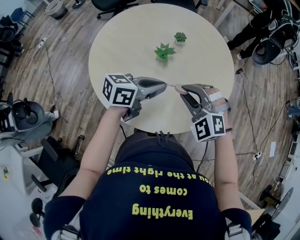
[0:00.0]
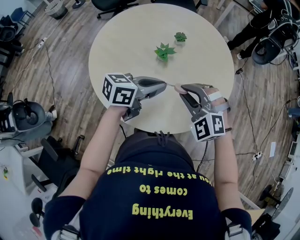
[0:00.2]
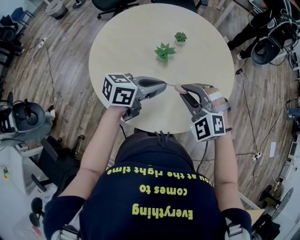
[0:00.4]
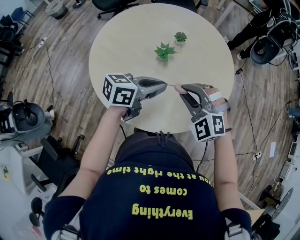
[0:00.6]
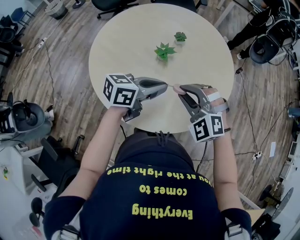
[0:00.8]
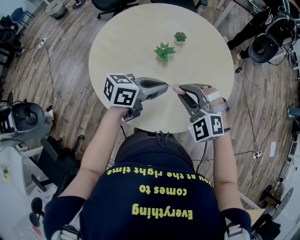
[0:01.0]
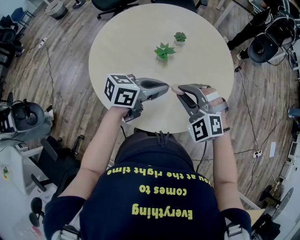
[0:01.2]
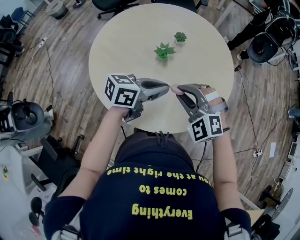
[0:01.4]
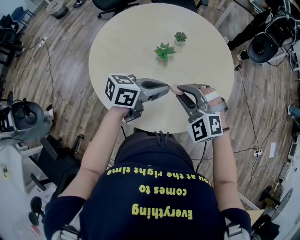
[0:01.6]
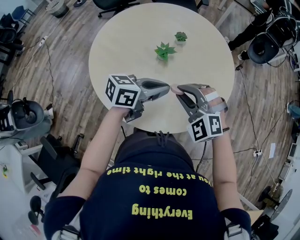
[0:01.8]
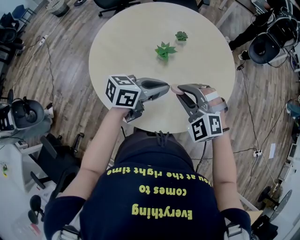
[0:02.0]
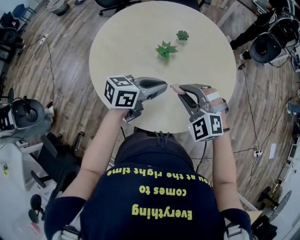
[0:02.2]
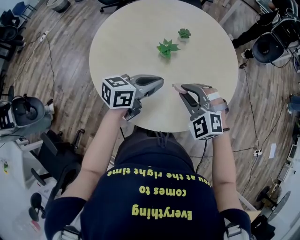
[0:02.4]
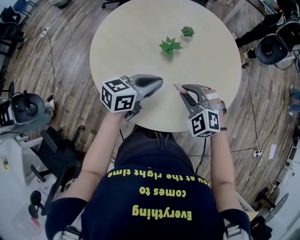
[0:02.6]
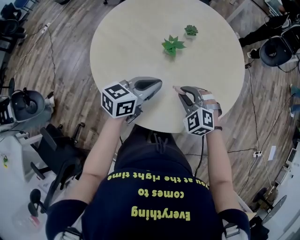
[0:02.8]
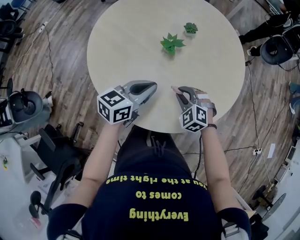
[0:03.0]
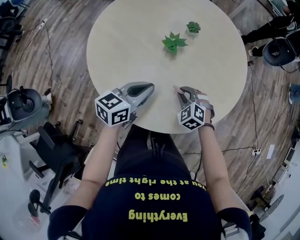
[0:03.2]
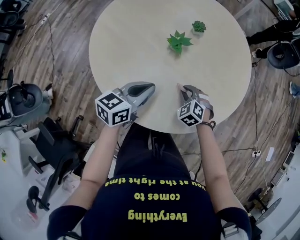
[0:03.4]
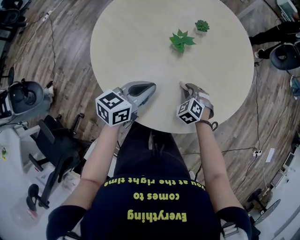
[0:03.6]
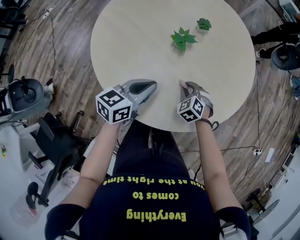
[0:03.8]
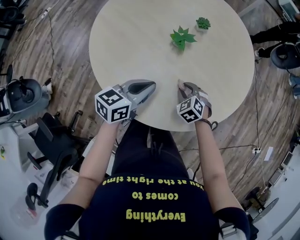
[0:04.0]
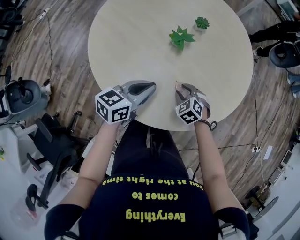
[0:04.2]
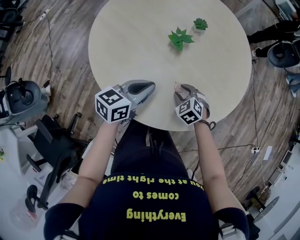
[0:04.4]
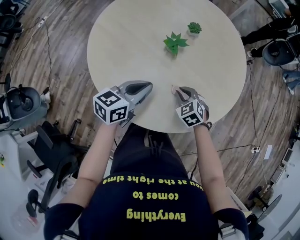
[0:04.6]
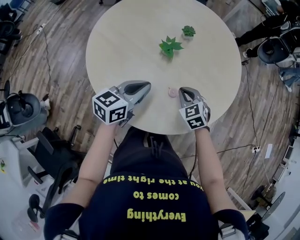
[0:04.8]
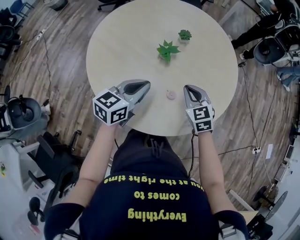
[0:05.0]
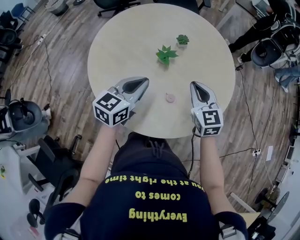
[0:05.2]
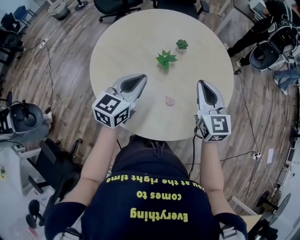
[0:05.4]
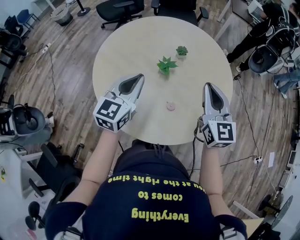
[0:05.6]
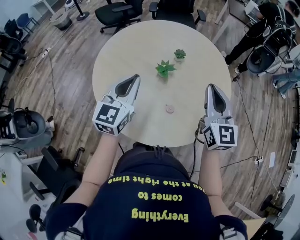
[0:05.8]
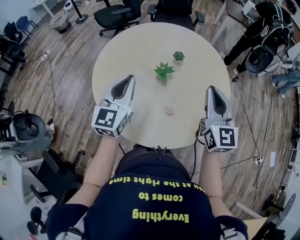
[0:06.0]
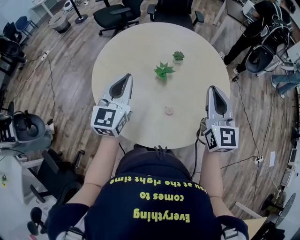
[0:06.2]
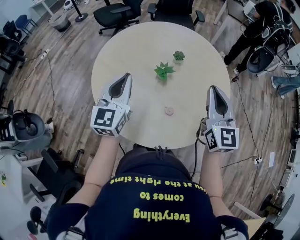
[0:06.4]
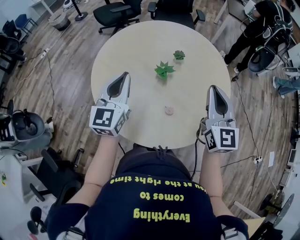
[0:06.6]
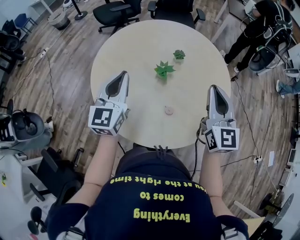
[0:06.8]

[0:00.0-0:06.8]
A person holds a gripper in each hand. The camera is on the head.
0:00.0 to 0:01.4: There are only small adjustments of the grippers.
0:01.4 to 0:02.8: The left gripper shifts some 5 cm downward; the right gripper shifts roughly 15 cm downward.
0:02.8 to 0:04.0: The right gripper shifts approximately 15 cm downward, and changes its angle by about 20 degrees. Meanwhile the left gripper goes approximately 5 cm downward.
0:04.0 to 0:05.4: The left gripper moves upward, some 10 cm, and changes its angle by some 30 degrees. Meanwhile the right gripper shifts some 30 cm upward, angles its fingers upward, by approximately 50 degrees, and closes.
0:05.4 to 0:06.8: The right gripper heads upward, covering some 10 cm; the left gripper moves to the left and upward, some 10 cm, and swivels some 20 degrees.

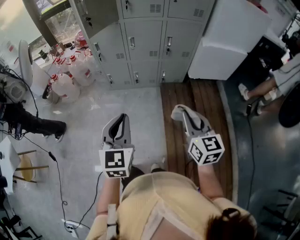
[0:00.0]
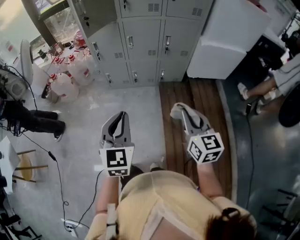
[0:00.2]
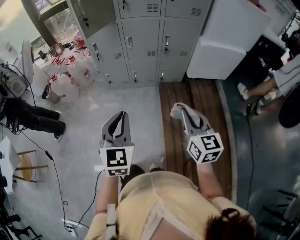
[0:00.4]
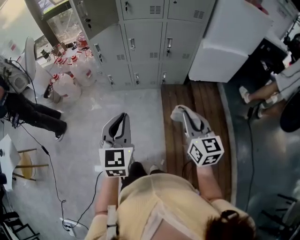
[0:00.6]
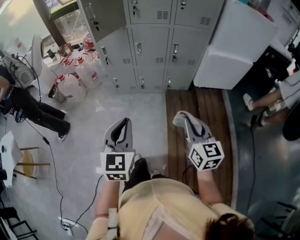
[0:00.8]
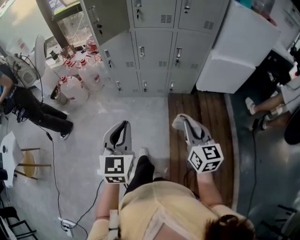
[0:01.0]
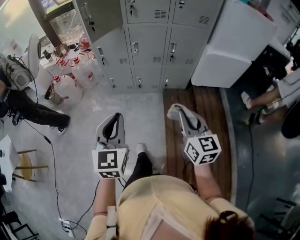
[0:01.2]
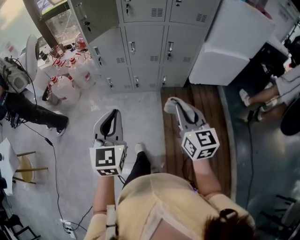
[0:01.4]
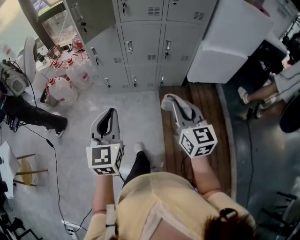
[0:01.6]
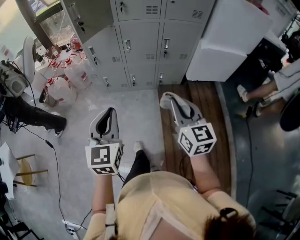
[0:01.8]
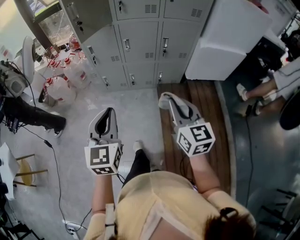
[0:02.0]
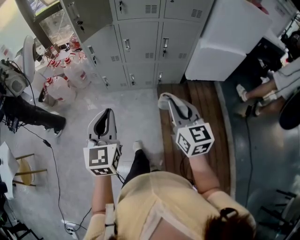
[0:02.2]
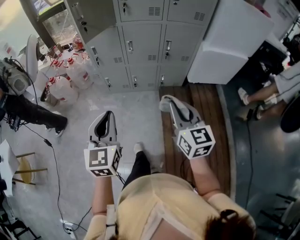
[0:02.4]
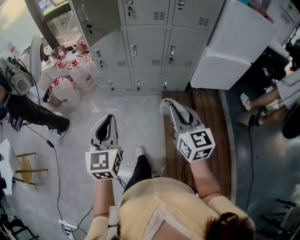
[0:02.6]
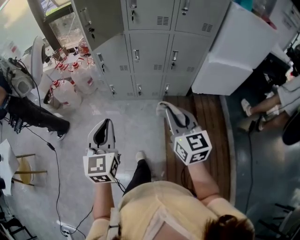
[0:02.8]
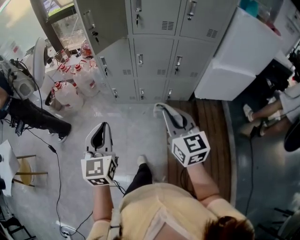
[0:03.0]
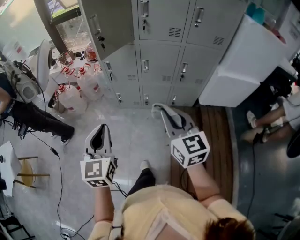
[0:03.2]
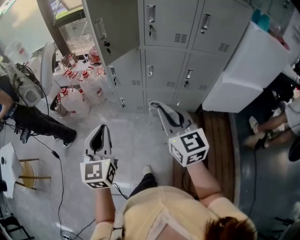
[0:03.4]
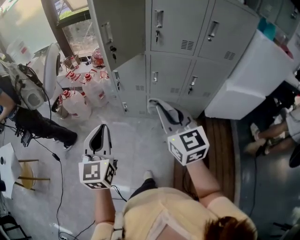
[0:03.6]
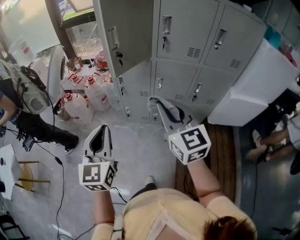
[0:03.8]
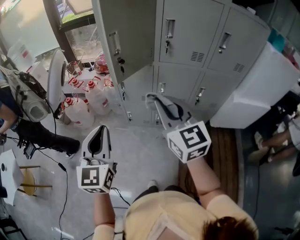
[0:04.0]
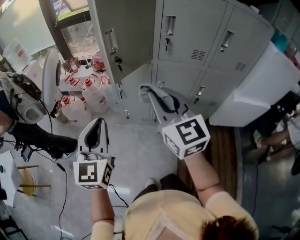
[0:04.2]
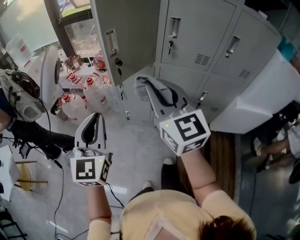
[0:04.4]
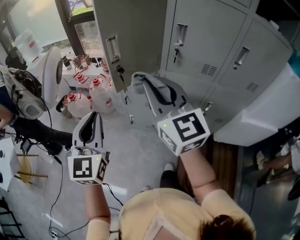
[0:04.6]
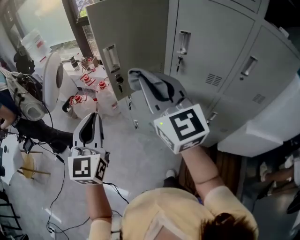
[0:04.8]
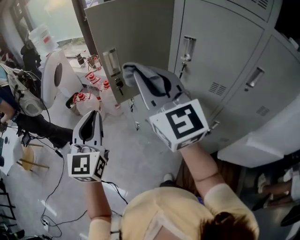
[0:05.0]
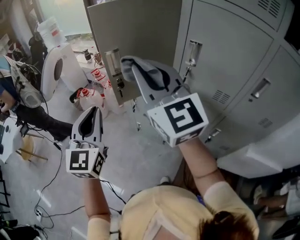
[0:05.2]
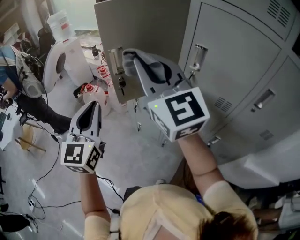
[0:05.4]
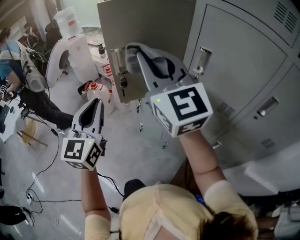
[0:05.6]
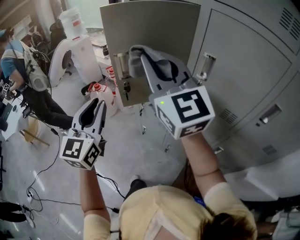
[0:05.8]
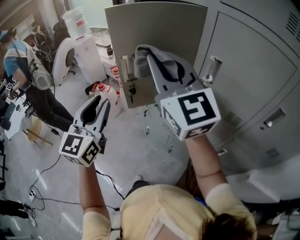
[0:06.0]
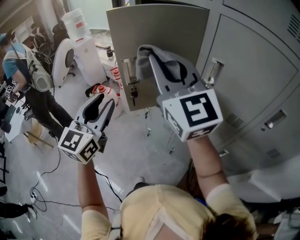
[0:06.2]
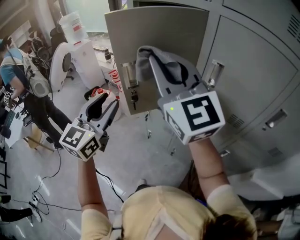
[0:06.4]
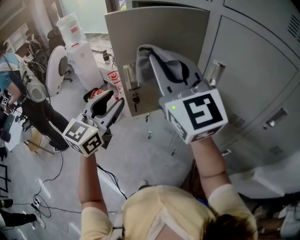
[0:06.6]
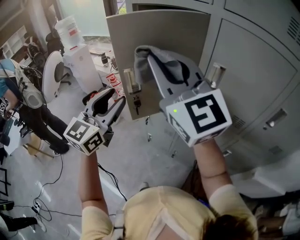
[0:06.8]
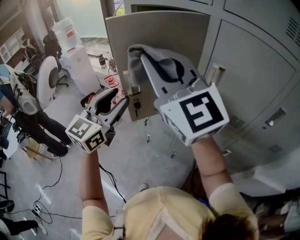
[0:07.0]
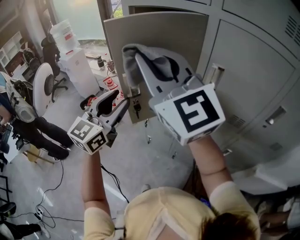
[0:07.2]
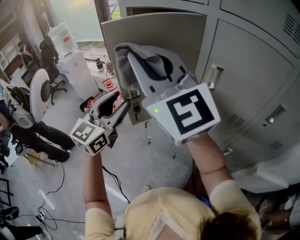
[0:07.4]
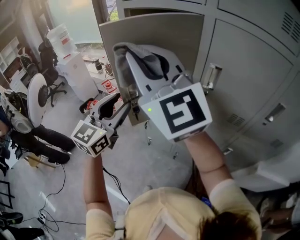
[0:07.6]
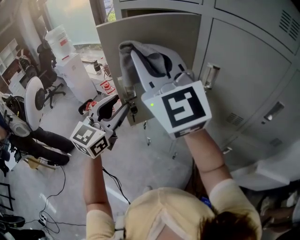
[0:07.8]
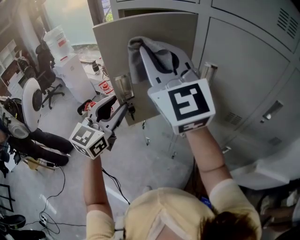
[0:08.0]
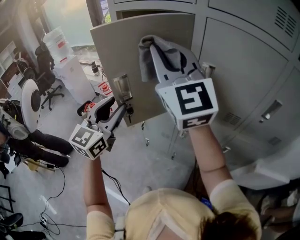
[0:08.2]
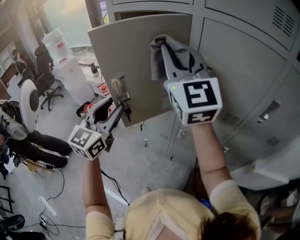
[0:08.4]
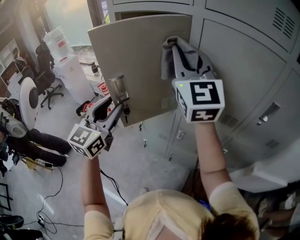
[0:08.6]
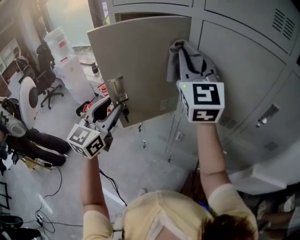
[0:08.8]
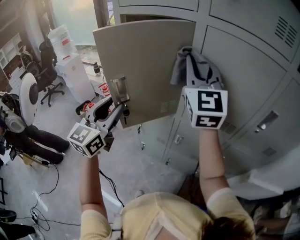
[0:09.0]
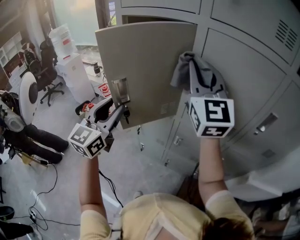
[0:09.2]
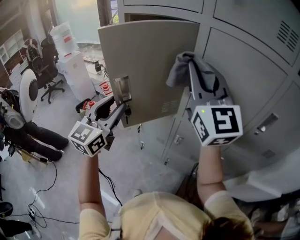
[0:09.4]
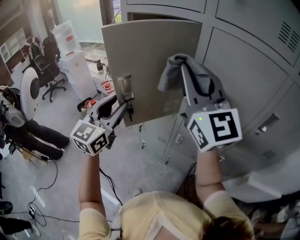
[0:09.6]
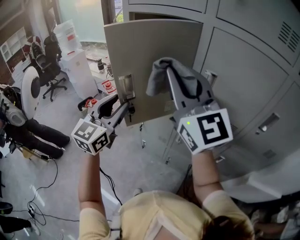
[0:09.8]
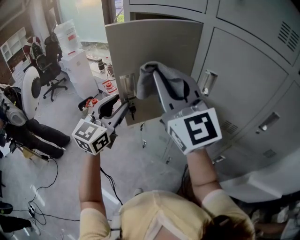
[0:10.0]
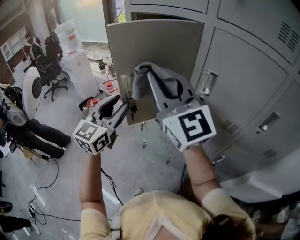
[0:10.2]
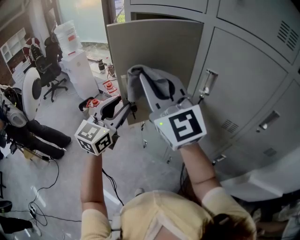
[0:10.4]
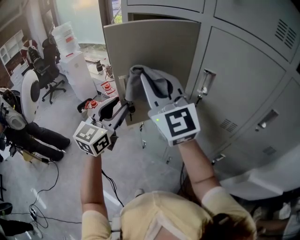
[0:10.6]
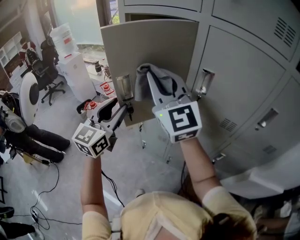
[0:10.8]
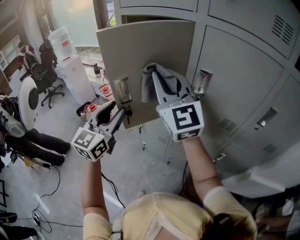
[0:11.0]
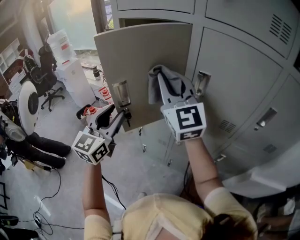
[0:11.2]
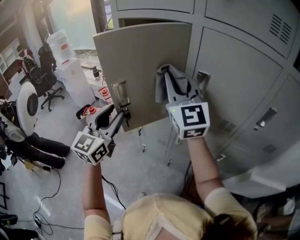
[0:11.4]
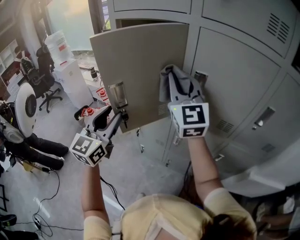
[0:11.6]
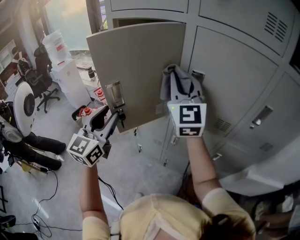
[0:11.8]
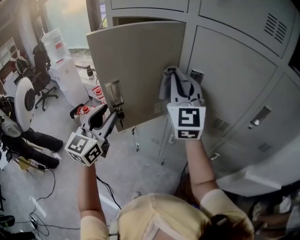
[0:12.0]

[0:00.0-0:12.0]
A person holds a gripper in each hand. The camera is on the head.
0:00.0 to 0:01.6: Both grippers travel together forward, about 5 cm.
0:01.6 to 0:03.0: The right gripper heads to the left and forward, covering approximately 10 cm. The left gripper goes approximately 5 cm to the left.
0:03.0 to 0:04.4: The right gripper travels forward, upward and to the left by some 35 cm, and rotates approximately 20 degrees. The left gripper travels forward and upward by some 25 cm.
0:04.4 to 0:06.0: The right gripper is displaced forward and upward by some 20 cm, and swivels about 30 degrees. Meanwhile the left gripper is displaced forward, to the right and upward by roughly 15 cm.
0:06.0 to 0:07.6: The left gripper travels forward by approximately 10 cm, and rotates about 20 degrees. Meanwhile the right gripper moves to the left, approximately 5 cm.
0:07.6 to 0:09.0: The right gripper is displaced to the right and forward by about 20 cm, and turns by approximately 30 degrees.
0:09.0 to 0:10.4: The right gripper is displaced to the left and backward by about 20 cm, and turns by approximately 30 degrees.
0:10.4 to 0:12.0: The right gripper moves to the right and forward, about 15 cm, and swivels some 30 degrees.

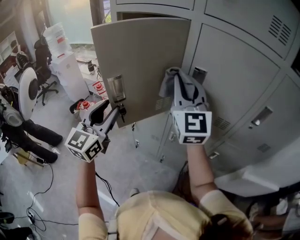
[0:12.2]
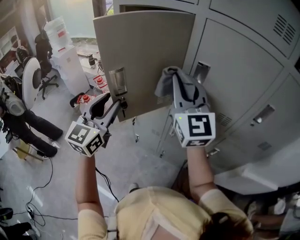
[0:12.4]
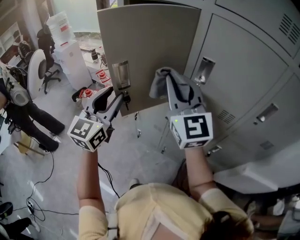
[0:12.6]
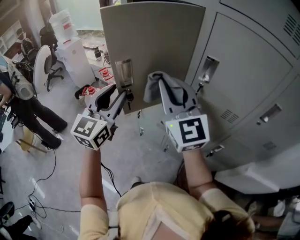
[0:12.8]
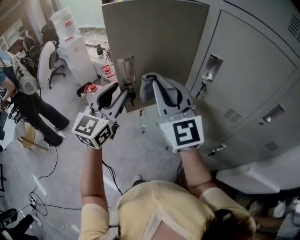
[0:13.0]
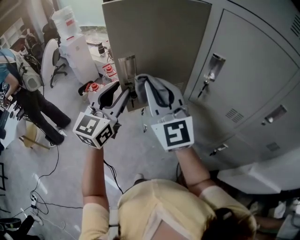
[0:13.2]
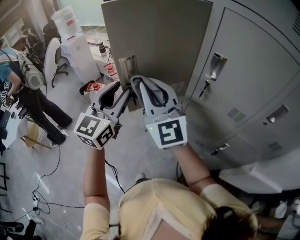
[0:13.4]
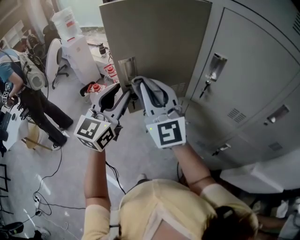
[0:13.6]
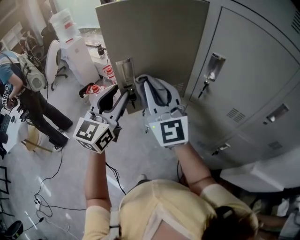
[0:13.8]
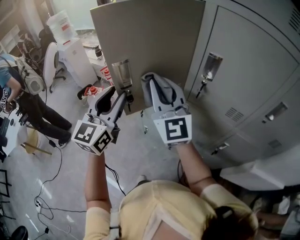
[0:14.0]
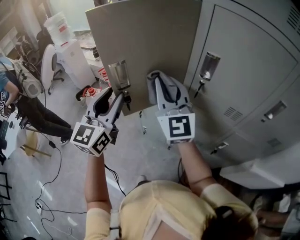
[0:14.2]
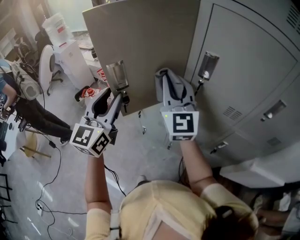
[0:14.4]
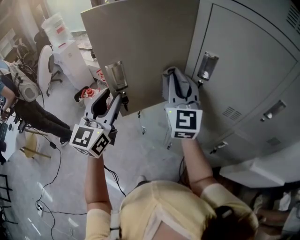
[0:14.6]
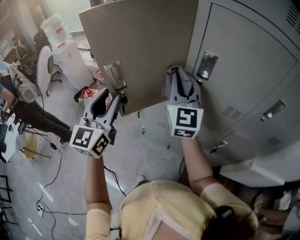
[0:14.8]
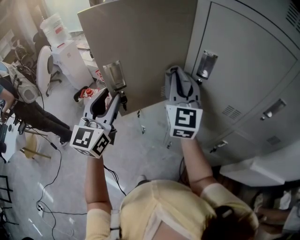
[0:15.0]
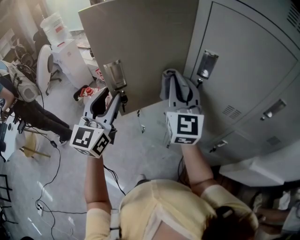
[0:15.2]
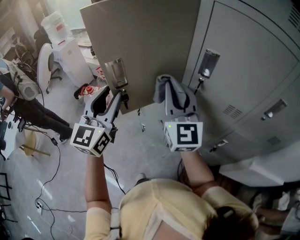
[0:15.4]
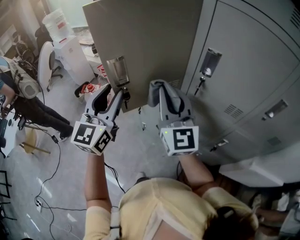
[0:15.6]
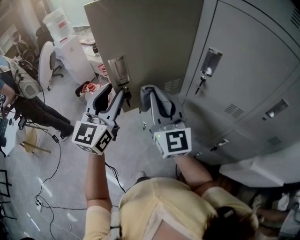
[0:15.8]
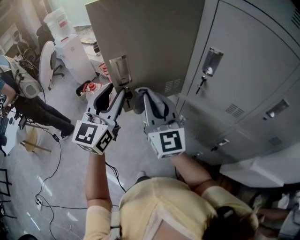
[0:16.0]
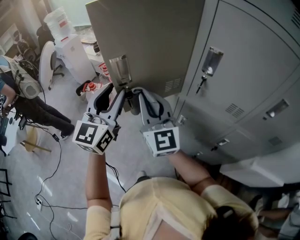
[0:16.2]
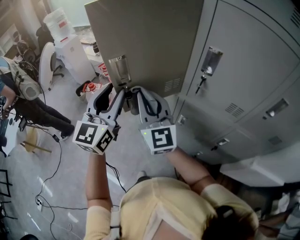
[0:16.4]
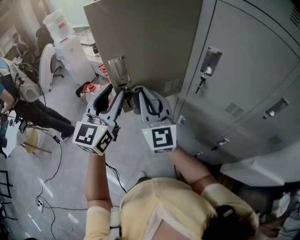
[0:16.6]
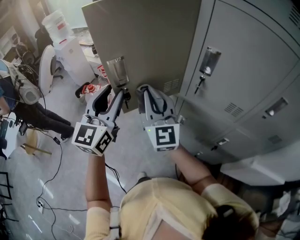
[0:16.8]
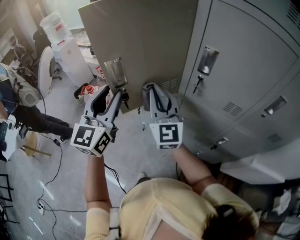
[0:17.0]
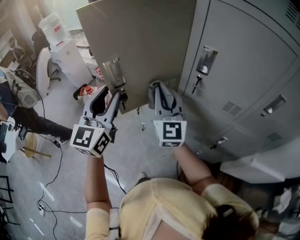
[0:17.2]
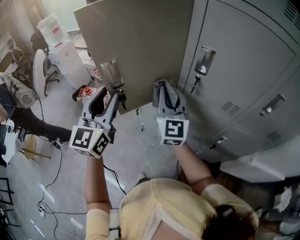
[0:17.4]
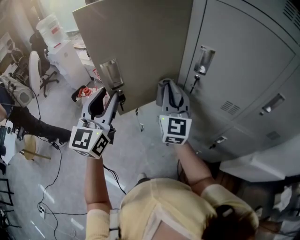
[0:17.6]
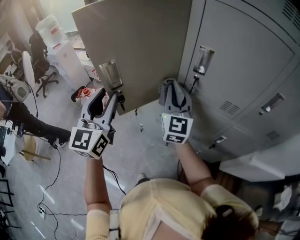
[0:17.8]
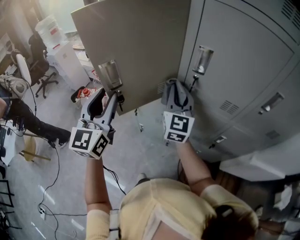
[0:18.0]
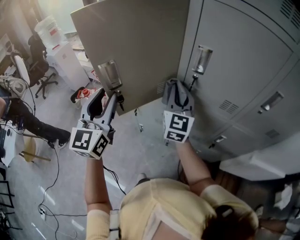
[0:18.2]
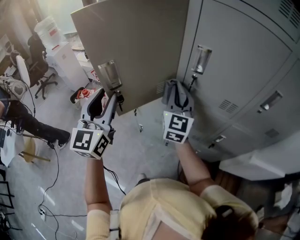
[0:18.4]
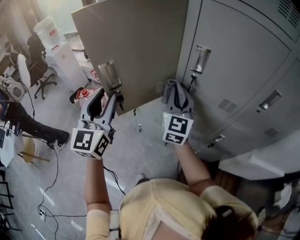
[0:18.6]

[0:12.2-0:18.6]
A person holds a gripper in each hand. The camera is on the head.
0:12.2 to 0:13.8: The right gripper travels to the left and downward by some 15 cm.
0:13.8 to 0:15.4: The right gripper is displaced to the right by roughly 10 cm.
0:15.4 to 0:17.0: The right gripper is displaced downward by about 5 cm.
0:17.0 to 0:18.6: The right gripper heads to the right, covering roughly 10 cm, and changes its angle by about 20 degrees.
